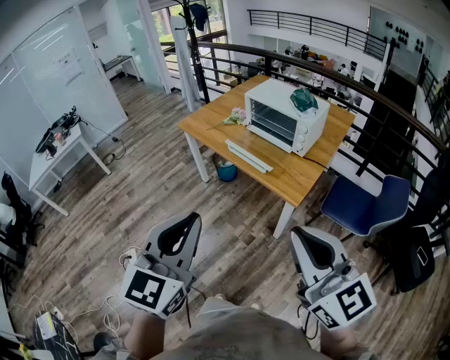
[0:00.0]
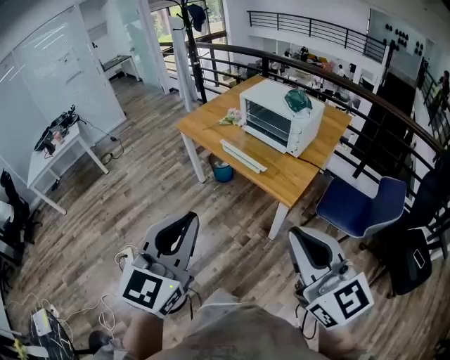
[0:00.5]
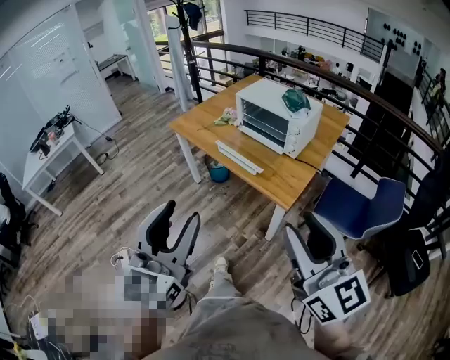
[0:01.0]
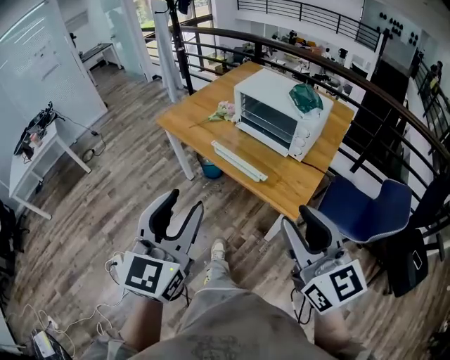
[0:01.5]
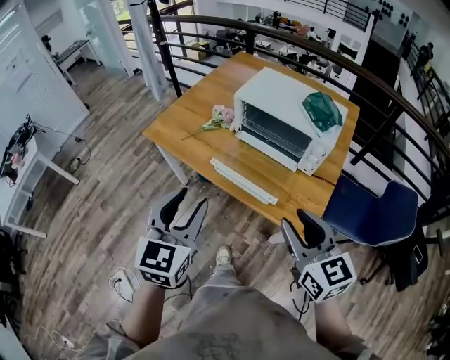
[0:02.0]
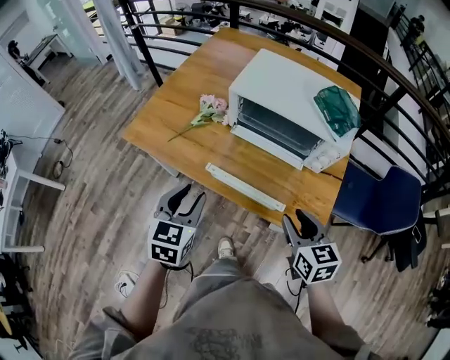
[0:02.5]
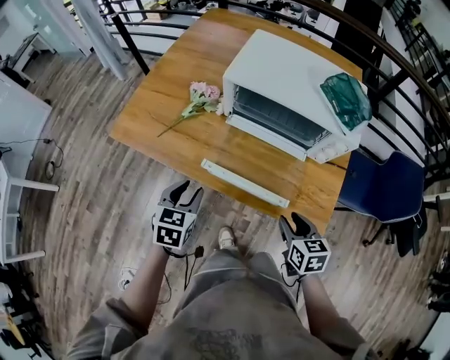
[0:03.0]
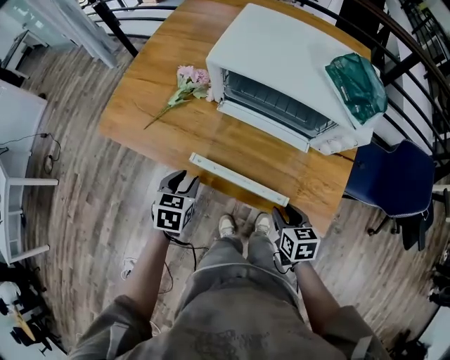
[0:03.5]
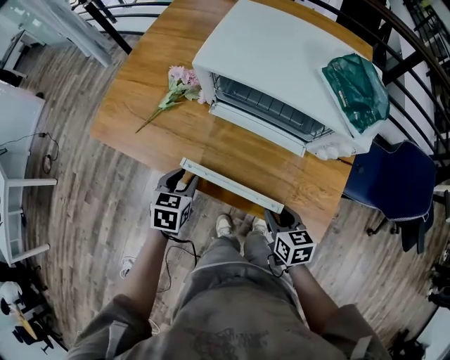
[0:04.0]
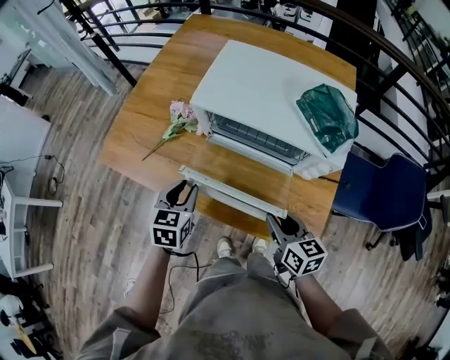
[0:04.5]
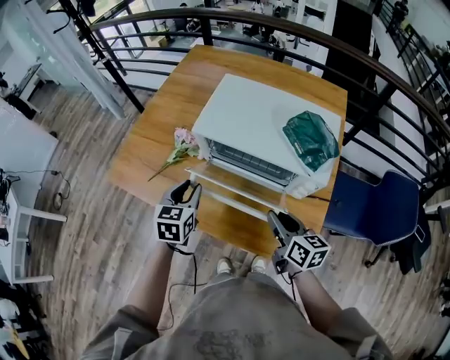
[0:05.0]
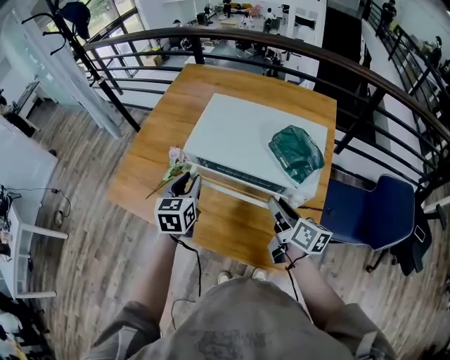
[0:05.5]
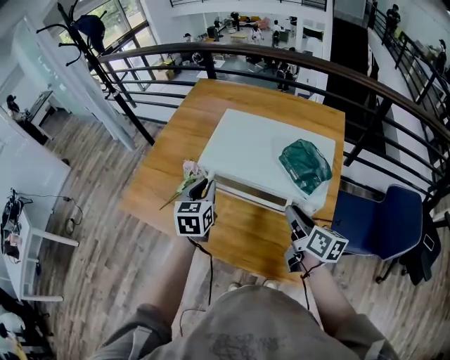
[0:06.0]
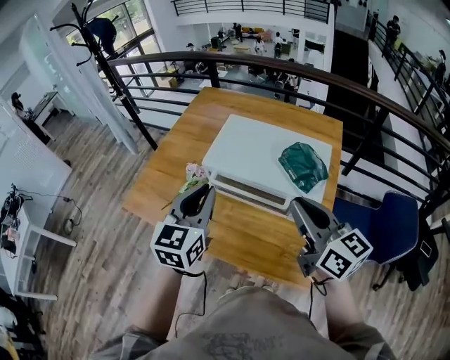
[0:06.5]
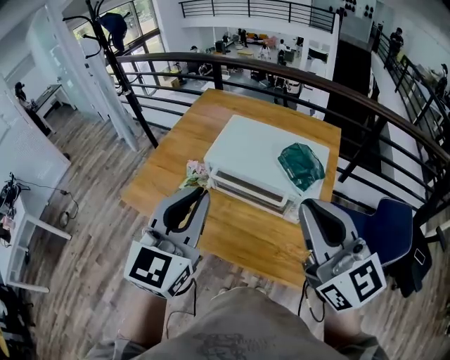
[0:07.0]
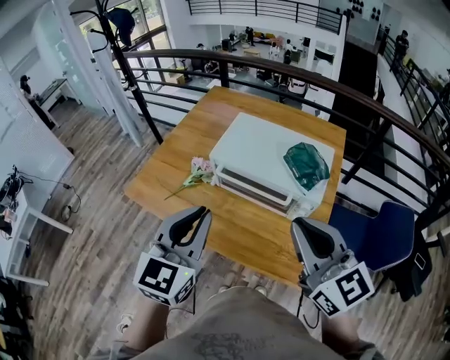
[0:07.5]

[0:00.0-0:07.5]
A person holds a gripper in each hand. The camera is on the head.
0:00.0 to 0:02.0: The left gripper moves forward, about 35 cm, and opens. Meanwhile the right gripper travels forward and downward by some 35 cm, turns by approximately 20 degrees, and opens.
0:02.0 to 0:04.0: The right gripper travels downward by roughly 35 cm, and turns by approximately 40 degrees. The left gripper travels downward and forward by about 40 cm, and angles its fingers downward, by some 30 degrees.
0:04.0 to 0:05.5: Both grippers move upward, forward and to the right, some 25 cm. The right gripper swivels about 40 degrees. Meanwhile the left gripper turns by roughly 20 degrees.
0:05.5 to 0:07.5: The two grippers go some 30 cm upward and backward. The left gripper rotates approximately 20 degrees, and closes up. Meanwhile the right gripper twists about 50 degrees counterclockwise, seen from behind, and closes its fingers.

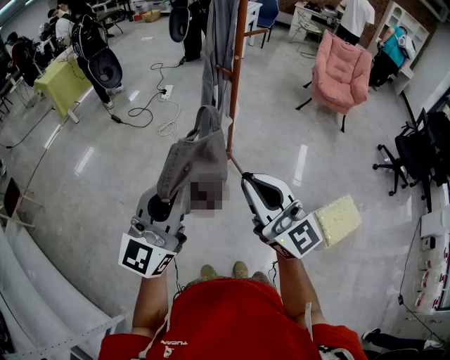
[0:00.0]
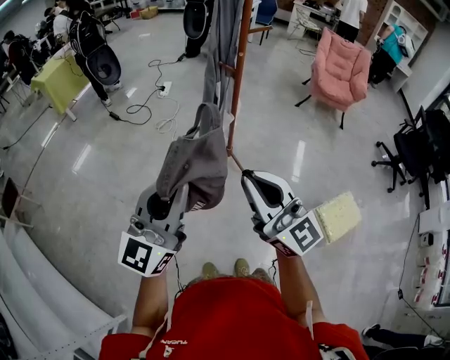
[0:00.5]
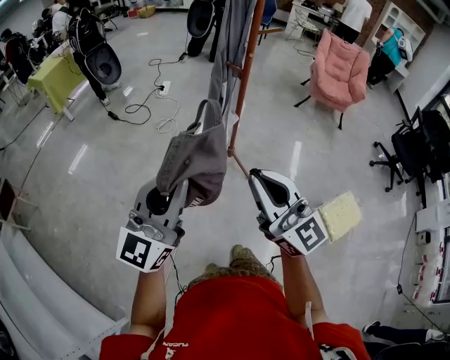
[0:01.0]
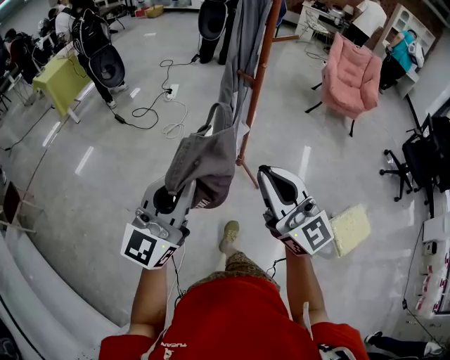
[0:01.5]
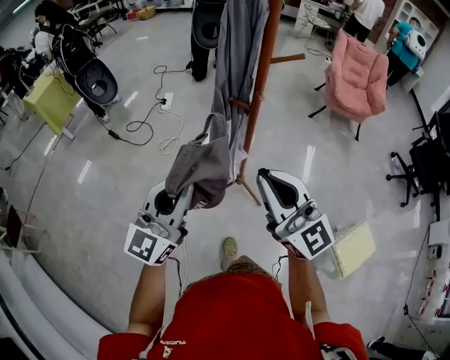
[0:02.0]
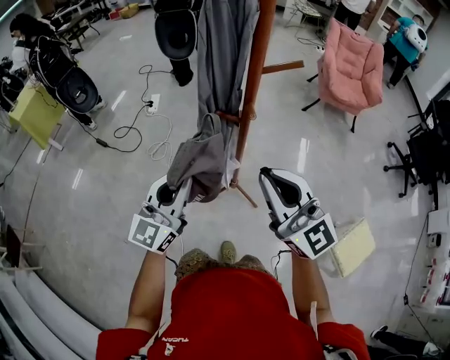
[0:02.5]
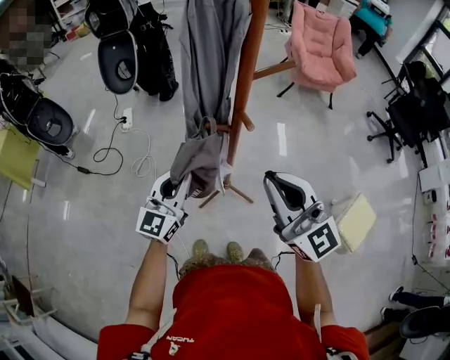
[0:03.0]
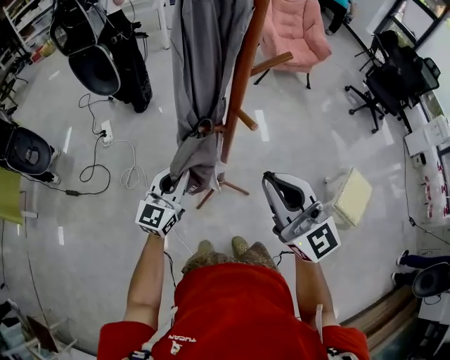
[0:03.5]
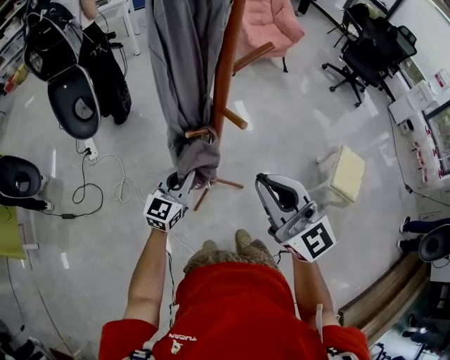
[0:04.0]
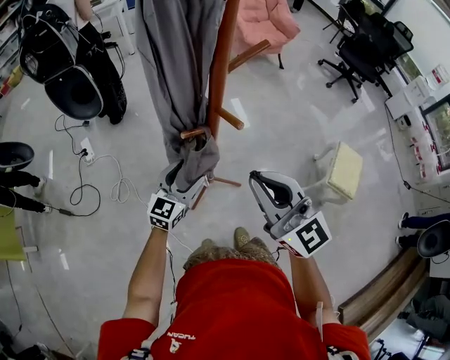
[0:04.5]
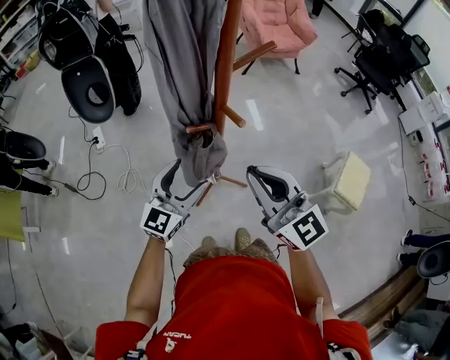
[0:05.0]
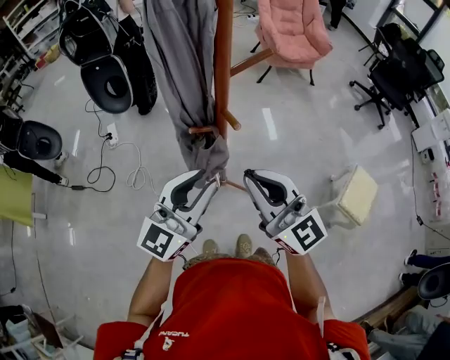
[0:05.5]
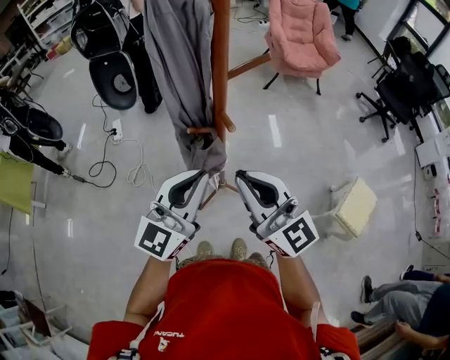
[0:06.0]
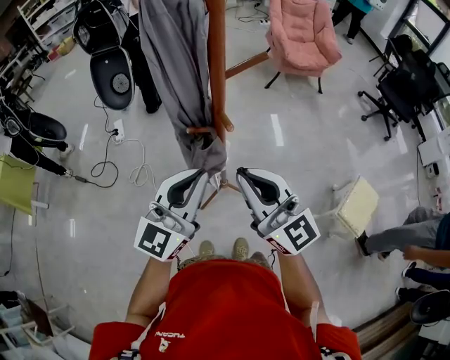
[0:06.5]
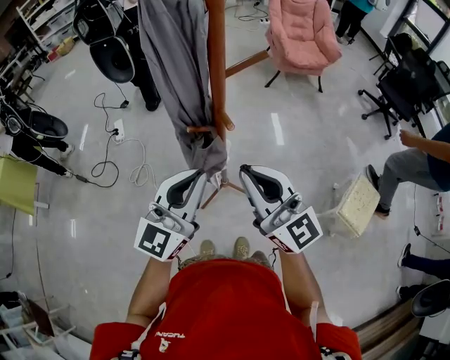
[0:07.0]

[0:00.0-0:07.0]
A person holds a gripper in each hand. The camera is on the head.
0:00.0 to 0:02.0: Both grippers travel together forward, some 30 cm.
0:02.0 to 0:03.5: The right gripper is displaced forward by some 10 cm, and turns by roughly 30 degrees. Meanwhile the left gripper moves forward and downward, approximately 30 cm, and turns by about 30 degrees.
0:03.5 to 0:05.0: The left gripper reaches some 10 cm downward, then returns, and opens its fingers.
0:05.0 to 0:07.0: The left gripper travels upward and backward by approximately 15 cm, and closes.

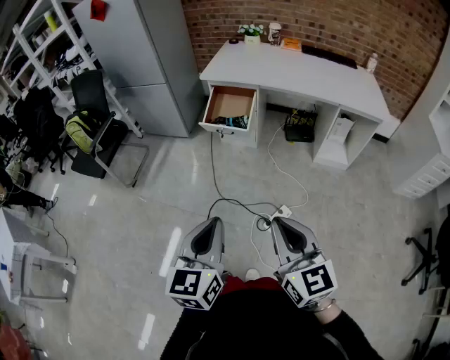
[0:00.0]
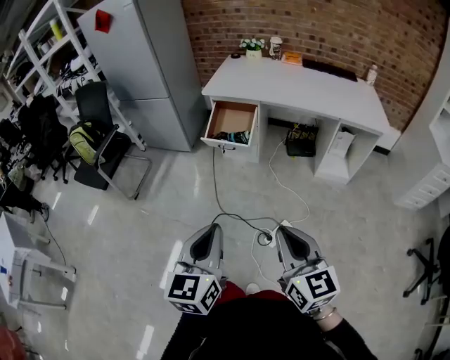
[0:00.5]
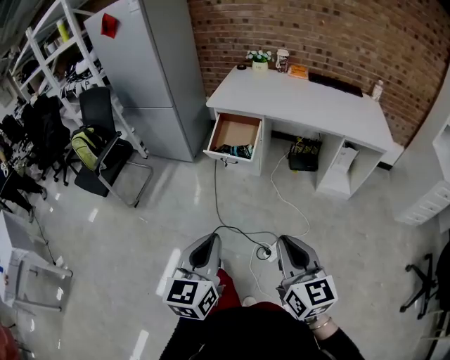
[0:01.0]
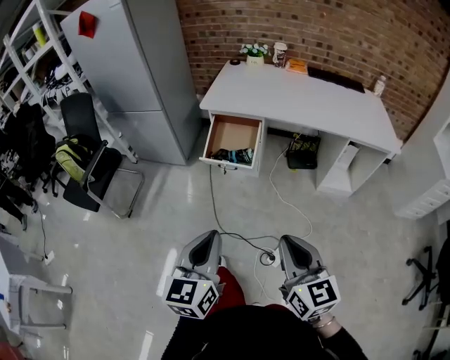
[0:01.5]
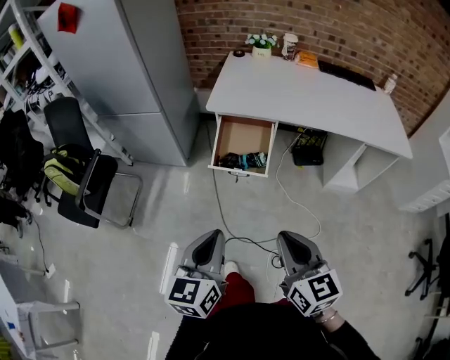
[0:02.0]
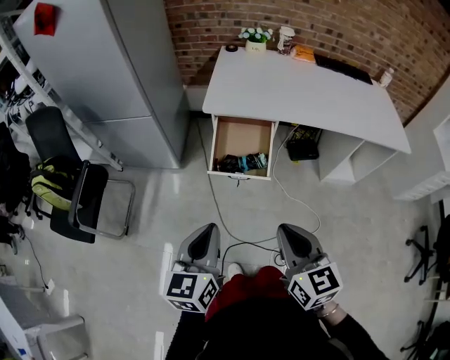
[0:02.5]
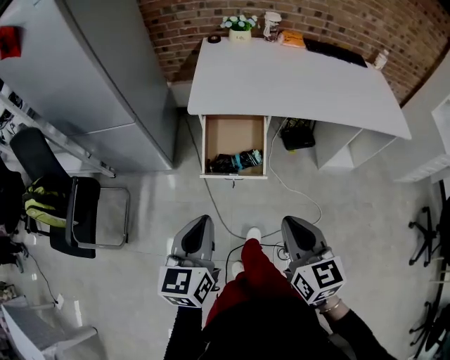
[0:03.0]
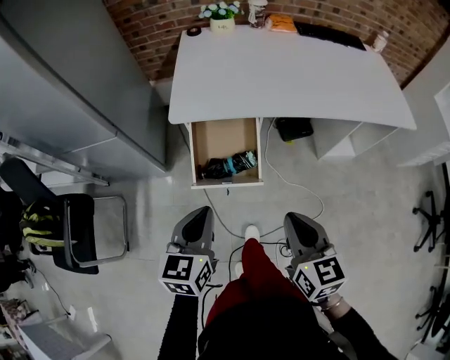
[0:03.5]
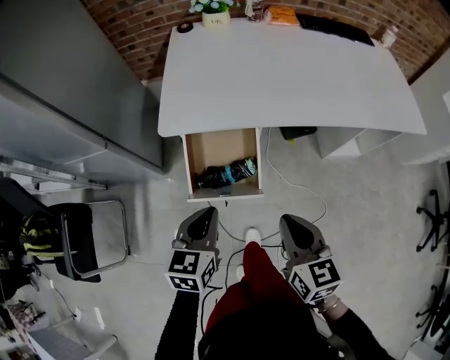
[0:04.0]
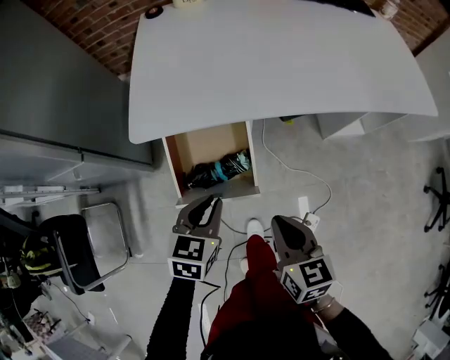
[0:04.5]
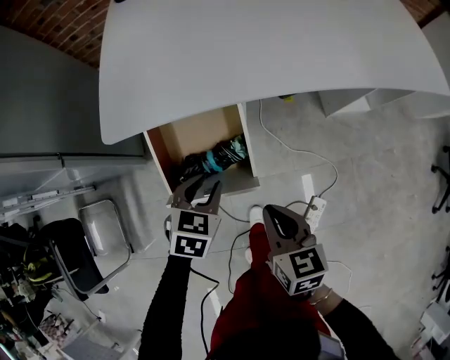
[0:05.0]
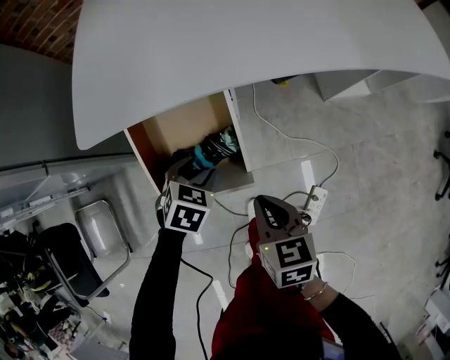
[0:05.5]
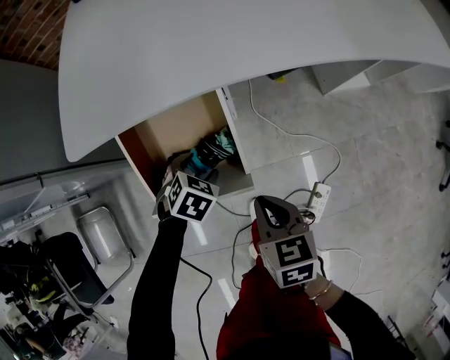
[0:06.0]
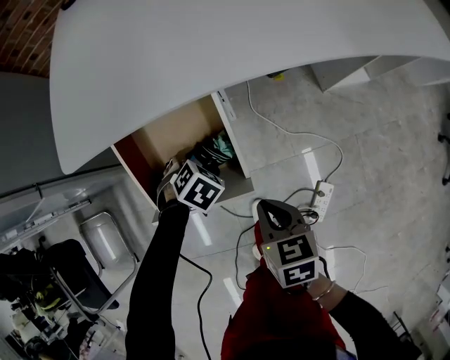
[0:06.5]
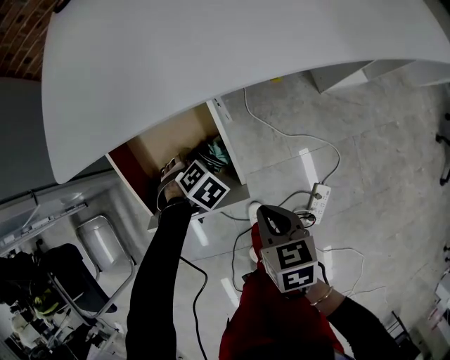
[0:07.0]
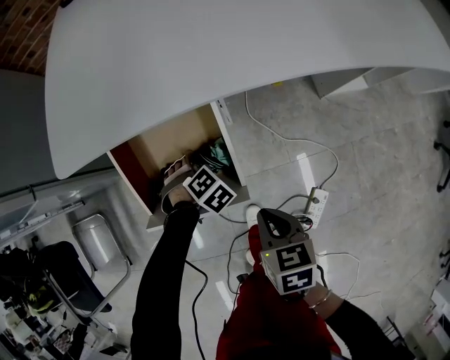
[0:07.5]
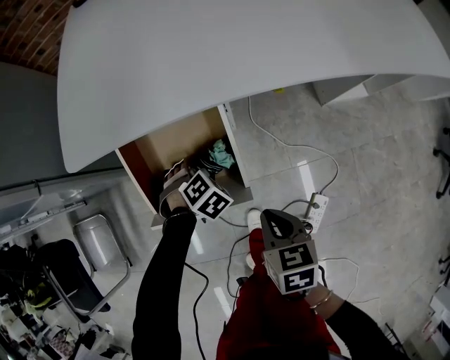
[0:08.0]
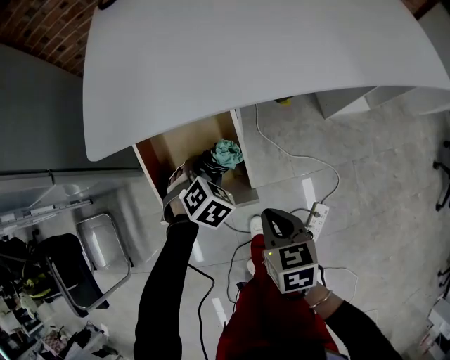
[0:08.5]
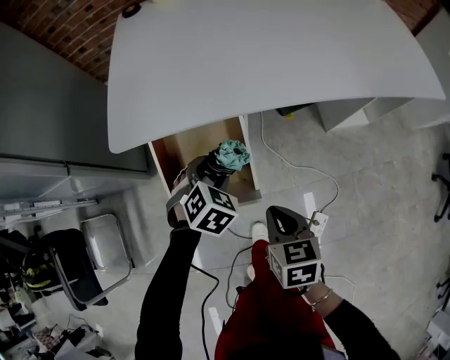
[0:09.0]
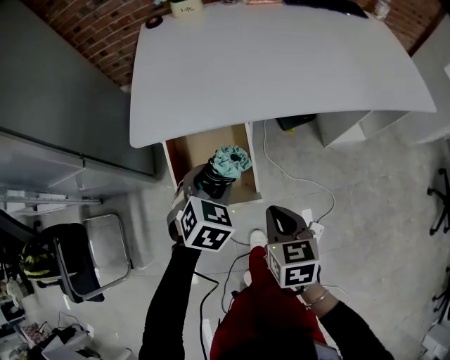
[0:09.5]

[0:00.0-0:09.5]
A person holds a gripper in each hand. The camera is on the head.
0:00.0 to 0:02.0: The left gripper travels forward and to the left by about 30 cm. Meanwhile the right gripper shifts approximately 30 cm forward.
0:02.0 to 0:04.0: The two grippers go some 30 cm forward. The left gripper changes its angle by approximately 20 degrees; the right gripper changes its angle by roughly 20 degrees.
0:04.0 to 0:05.5: The left gripper shifts approximately 30 cm downward and forward, tilts its fingers about 30 degrees downward, and opens its fingers; the right gripper shifts approximately 20 cm downward.
0:05.5 to 0:07.5: The left gripper travels downward by about 15 cm, and swivels some 30 degrees. Meanwhile the right gripper shifts some 5 cm downward.
0:07.5 to 0:09.5: The left gripper heads upward, covering roughly 30 cm, and turns by approximately 40 degrees. Meanwhile the right gripper heads upward, covering roughly 15 cm.

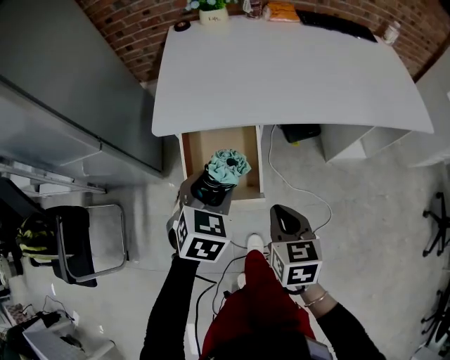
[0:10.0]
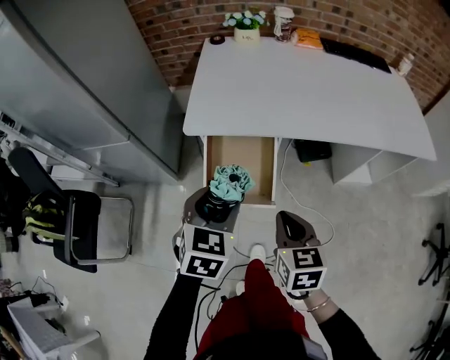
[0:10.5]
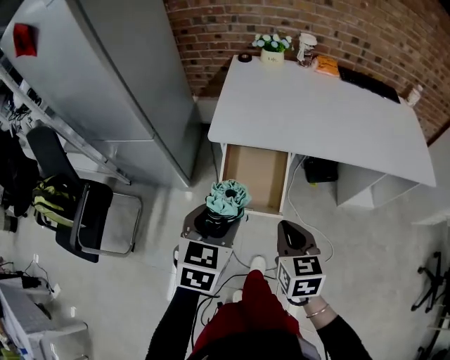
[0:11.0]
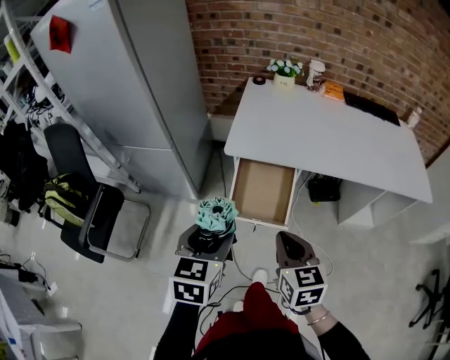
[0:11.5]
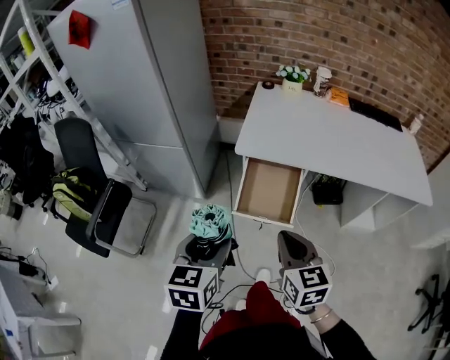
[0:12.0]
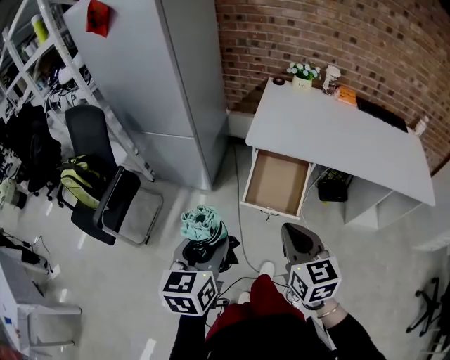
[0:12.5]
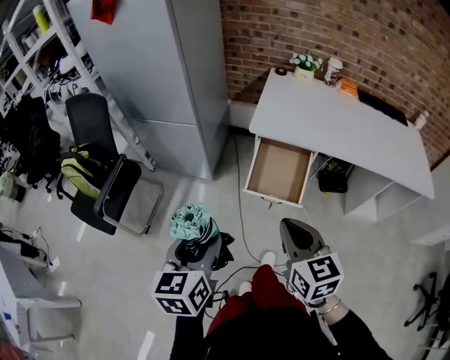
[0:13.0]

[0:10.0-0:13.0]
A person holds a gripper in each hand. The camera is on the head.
0:10.0 to 0:11.5: The left gripper shifts some 25 cm backward, upward and to the left, and turns by roughly 30 degrees. Meanwhile the right gripper heads upward, to the left and backward, covering about 20 cm, and changes its angle by roughly 20 degrees.
0:11.5 to 0:13.0: The left gripper moves backward and to the left, some 15 cm, and rotates approximately 20 degrees. The right gripper moves to the left, backward and upward, approximately 15 cm.
